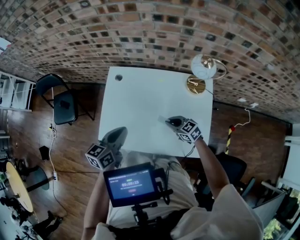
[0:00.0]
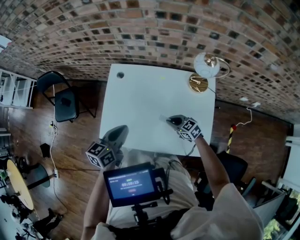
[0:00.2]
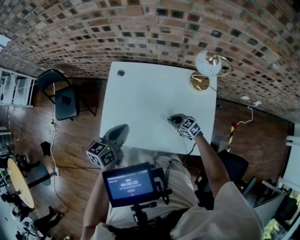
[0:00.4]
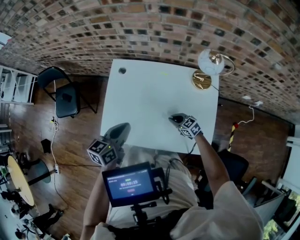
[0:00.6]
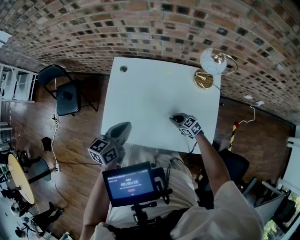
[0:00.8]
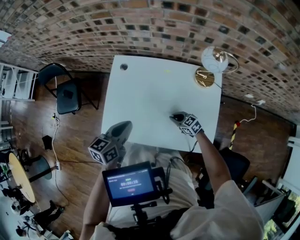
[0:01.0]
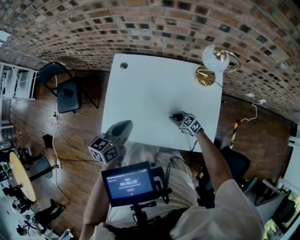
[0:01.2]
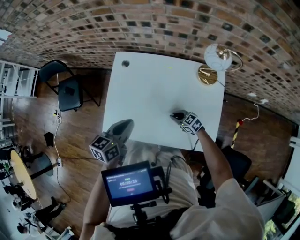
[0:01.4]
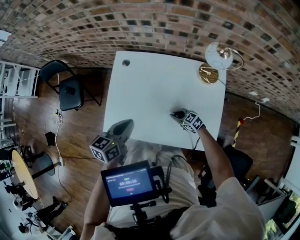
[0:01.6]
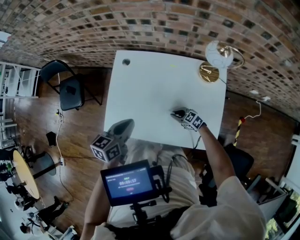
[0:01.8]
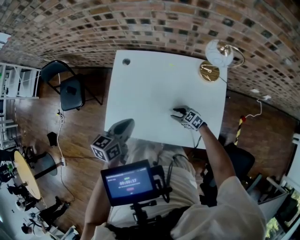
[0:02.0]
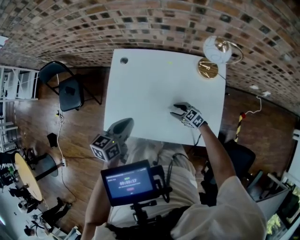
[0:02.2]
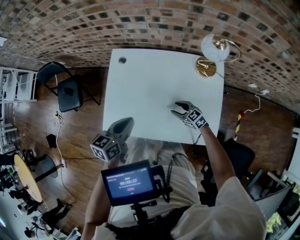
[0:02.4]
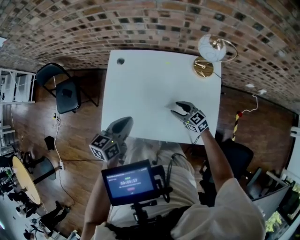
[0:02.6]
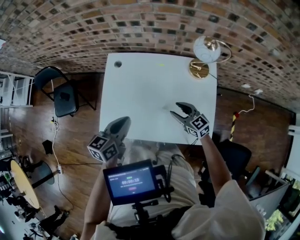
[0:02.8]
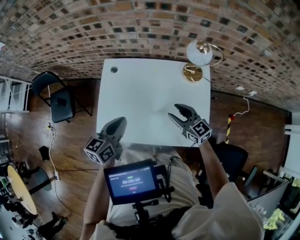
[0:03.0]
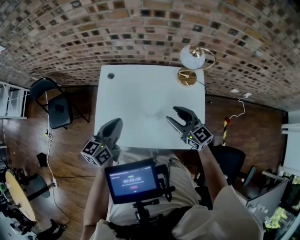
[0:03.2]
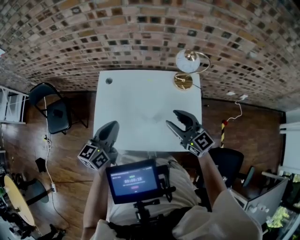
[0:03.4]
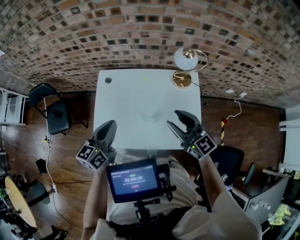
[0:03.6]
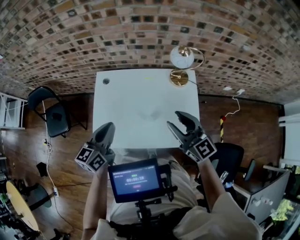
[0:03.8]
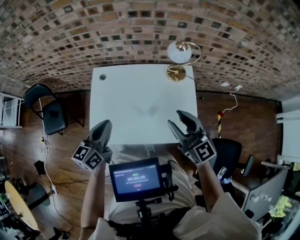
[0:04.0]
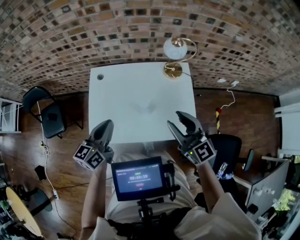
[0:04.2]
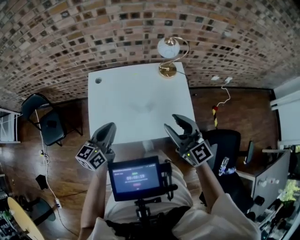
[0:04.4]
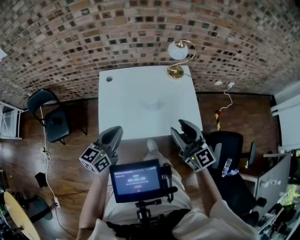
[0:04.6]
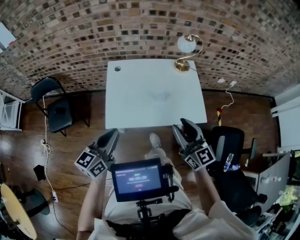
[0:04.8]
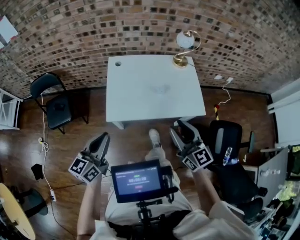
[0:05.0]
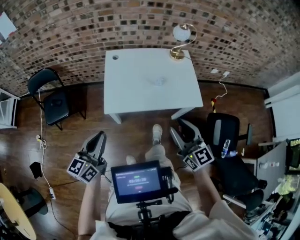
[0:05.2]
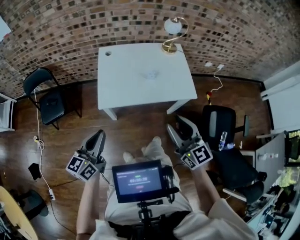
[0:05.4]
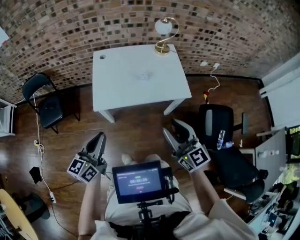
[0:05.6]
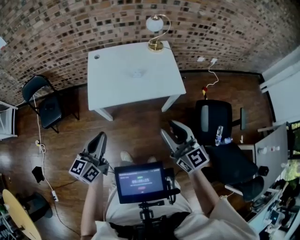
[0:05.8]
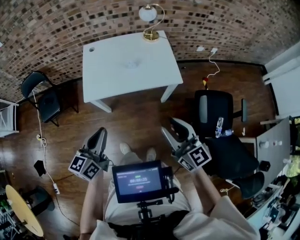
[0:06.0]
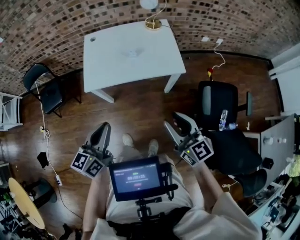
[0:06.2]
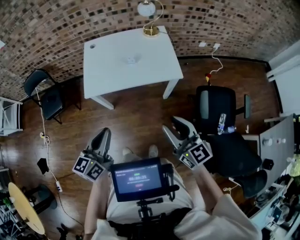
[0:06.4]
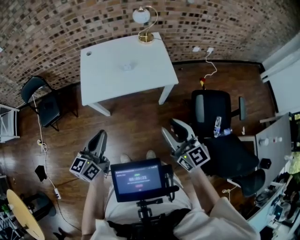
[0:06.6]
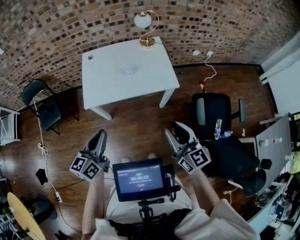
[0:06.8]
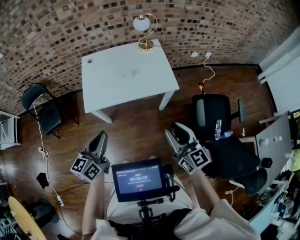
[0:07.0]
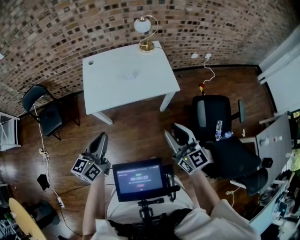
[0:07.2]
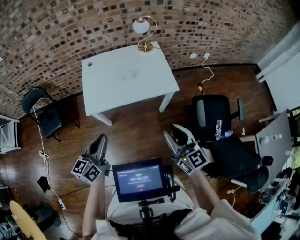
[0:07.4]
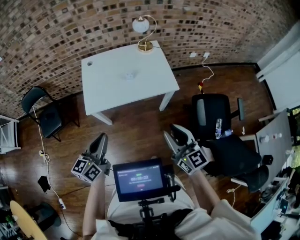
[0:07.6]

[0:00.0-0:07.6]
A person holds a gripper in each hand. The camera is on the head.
0.0 to 1.6 s: The right gripper shifts about 10 cm downward.
1.6 to 3.0 s: The right gripper shifts approximately 25 cm upward, rotates about 30 degrees, and opens up.
3.0 to 4.6 s: The right gripper shifts about 25 cm backward and upward, and swivels approximately 30 degrees. The left gripper travels backward, upward and to the left by some 15 cm.
4.6 to 6.0 s: Both grippers move backward, some 30 cm.
6.0 to 7.6 s: The grippers make only small movements.

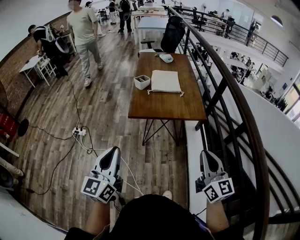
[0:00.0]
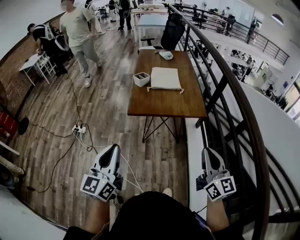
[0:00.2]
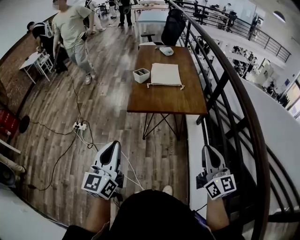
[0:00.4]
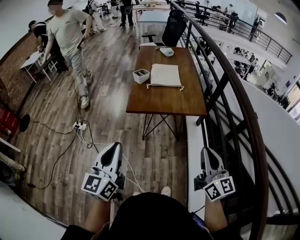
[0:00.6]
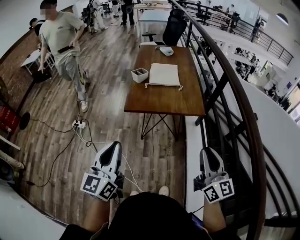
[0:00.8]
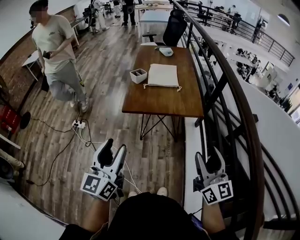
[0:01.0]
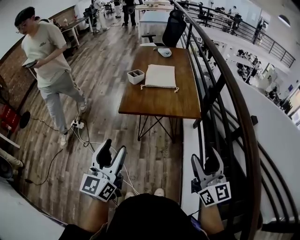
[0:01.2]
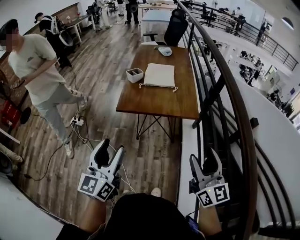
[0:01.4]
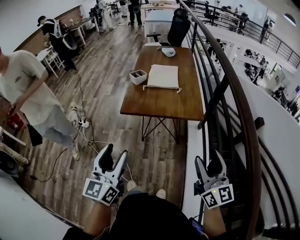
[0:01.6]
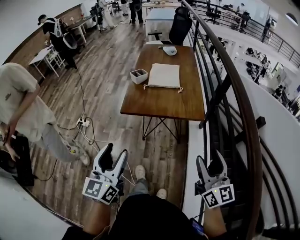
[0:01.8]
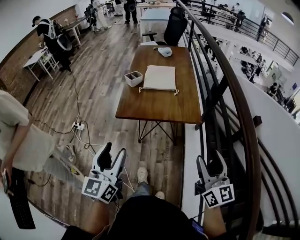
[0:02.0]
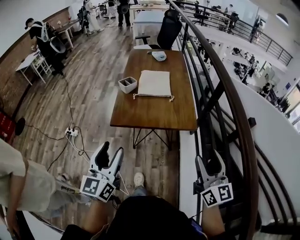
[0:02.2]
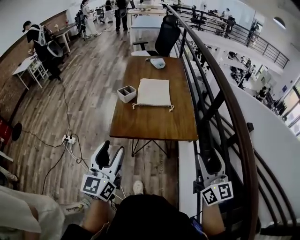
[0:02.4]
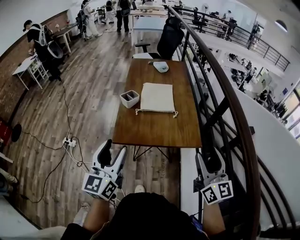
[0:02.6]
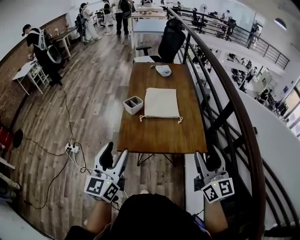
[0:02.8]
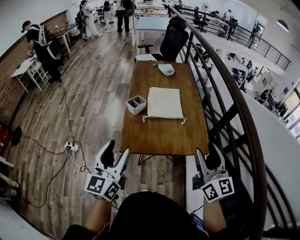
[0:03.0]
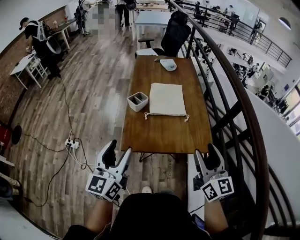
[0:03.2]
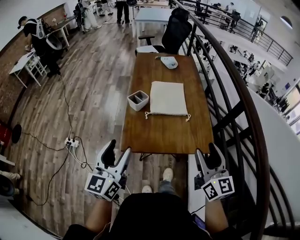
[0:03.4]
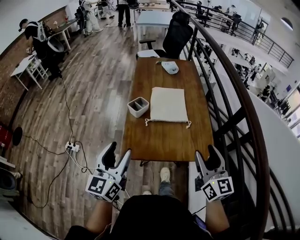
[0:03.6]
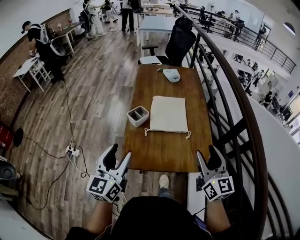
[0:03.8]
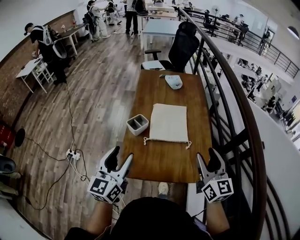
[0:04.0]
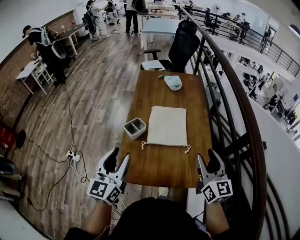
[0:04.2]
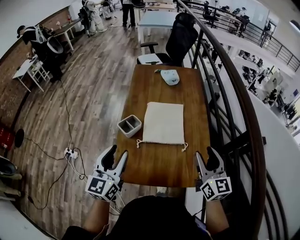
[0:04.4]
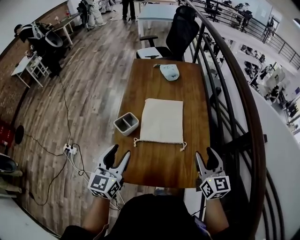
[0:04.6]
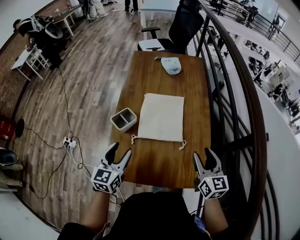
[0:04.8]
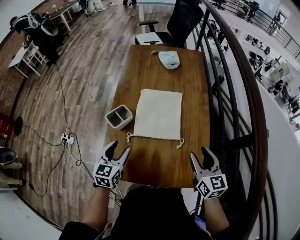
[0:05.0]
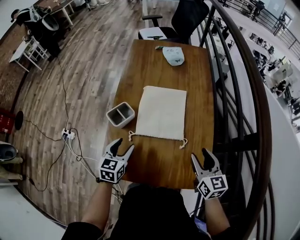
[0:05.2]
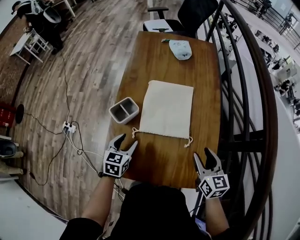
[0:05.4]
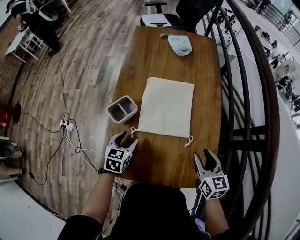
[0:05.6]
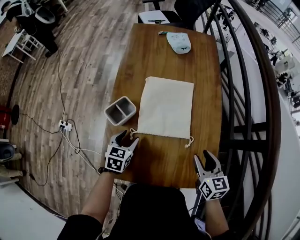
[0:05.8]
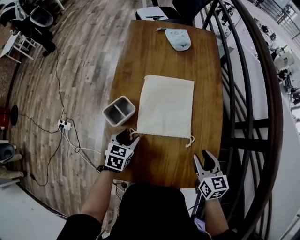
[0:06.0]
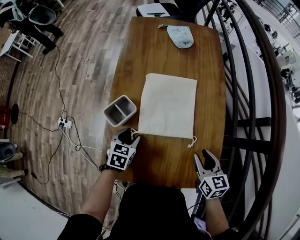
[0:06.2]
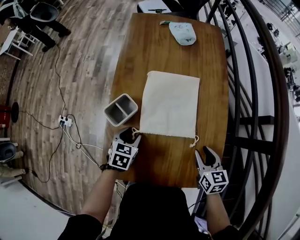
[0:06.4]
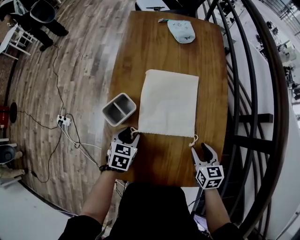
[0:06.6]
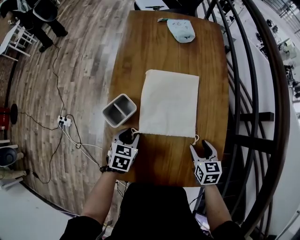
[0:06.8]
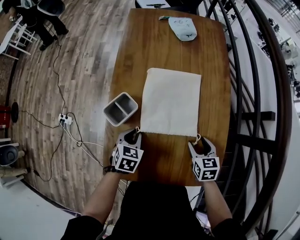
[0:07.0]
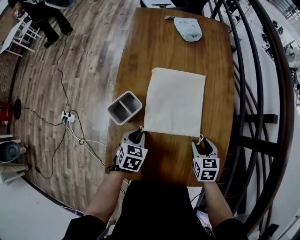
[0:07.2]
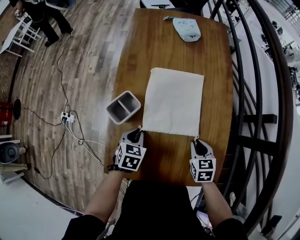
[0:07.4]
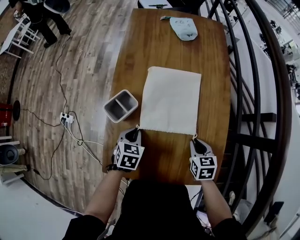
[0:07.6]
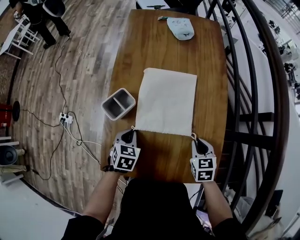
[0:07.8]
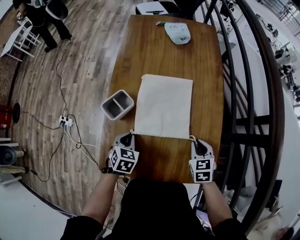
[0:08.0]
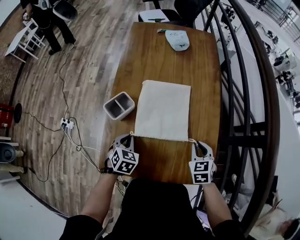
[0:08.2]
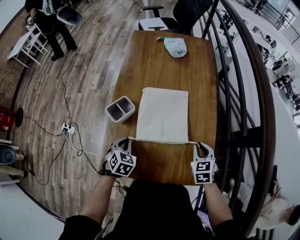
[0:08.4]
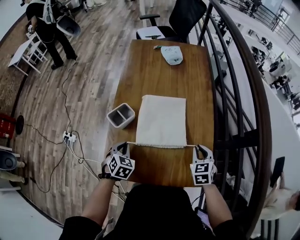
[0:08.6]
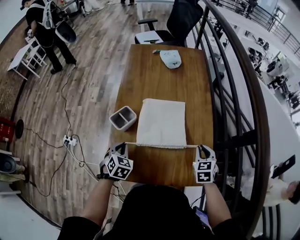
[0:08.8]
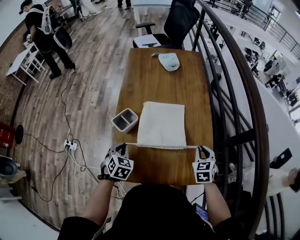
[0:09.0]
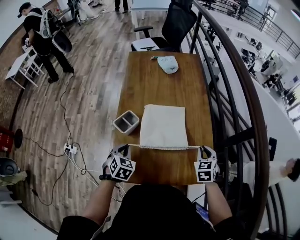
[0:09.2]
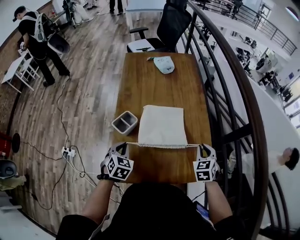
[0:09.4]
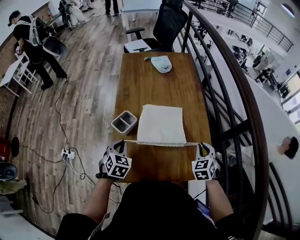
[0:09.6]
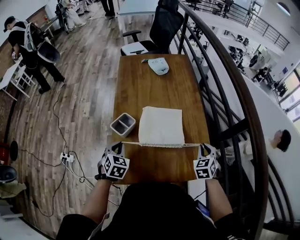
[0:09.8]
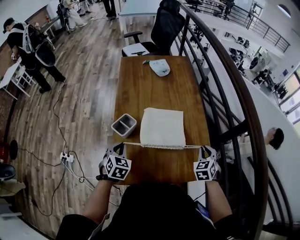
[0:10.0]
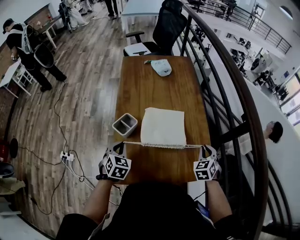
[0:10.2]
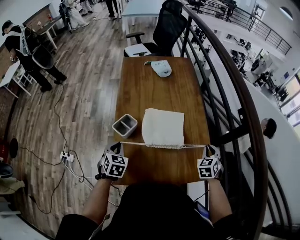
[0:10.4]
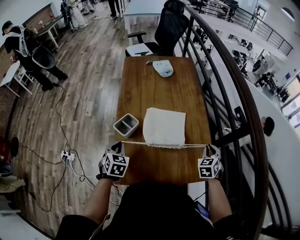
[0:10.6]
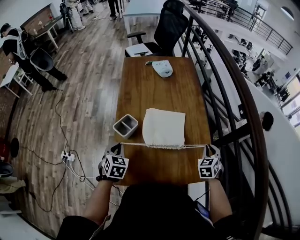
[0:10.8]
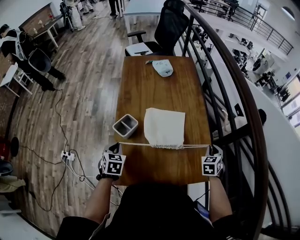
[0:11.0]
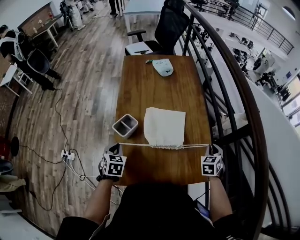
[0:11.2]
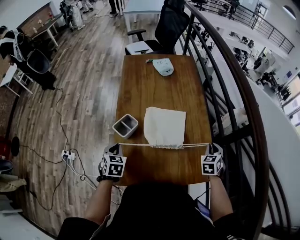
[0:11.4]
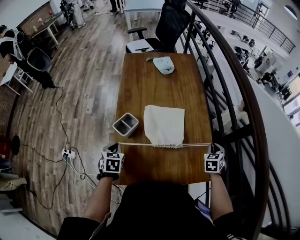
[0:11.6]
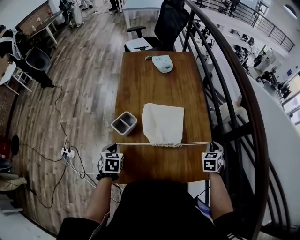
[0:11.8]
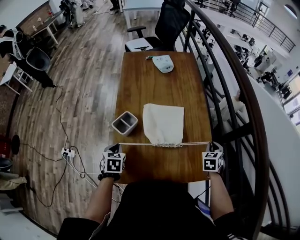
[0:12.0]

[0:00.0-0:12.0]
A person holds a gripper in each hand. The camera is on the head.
0.0 to 1.6 s: The two grippers go some 10 cm to the right. The right gripper opens up; the left gripper opens its fingers.
1.6 to 3.0 s: The two grippers go approximately 25 cm forward.
3.0 to 4.4 s: The two grippers go about 20 cm forward.
4.4 to 6.0 s: The two grippers go some 25 cm downward. The left gripper points its fingers approximately 40 degrees further downward. The right gripper changes its angle by about 30 degrees.
6.0 to 7.6 s: The left gripper closes, while the right gripper shifts some 10 cm downward, and closes up.
7.6 to 9.0 s: The left gripper moves upward and to the left, some 10 cm. The right gripper shifts approximately 10 cm upward and to the right, and changes its angle by roughly 20 degrees.
9.0 to 10.4 s: The right gripper shifts by about 5 cm.
10.4 to 12.0 s: The grippers move only a little.

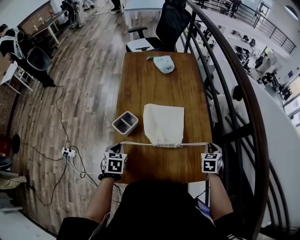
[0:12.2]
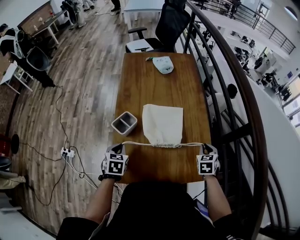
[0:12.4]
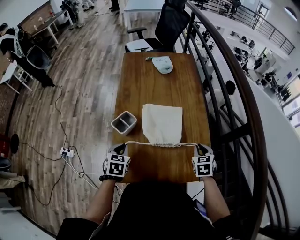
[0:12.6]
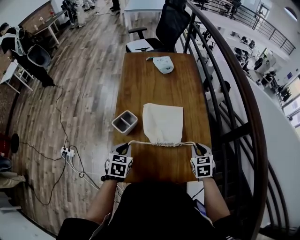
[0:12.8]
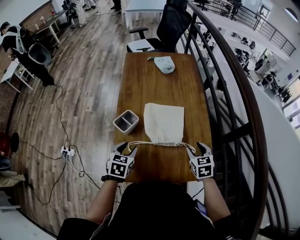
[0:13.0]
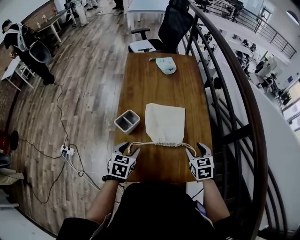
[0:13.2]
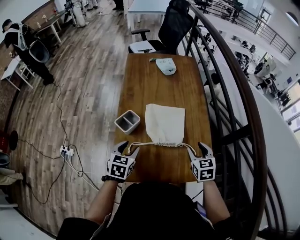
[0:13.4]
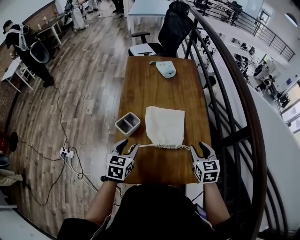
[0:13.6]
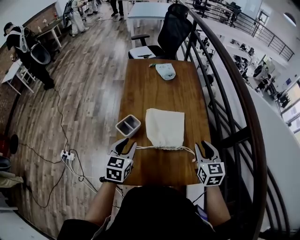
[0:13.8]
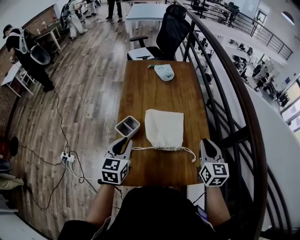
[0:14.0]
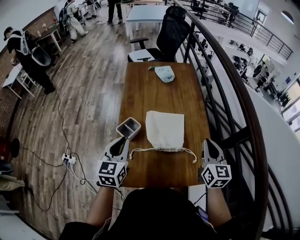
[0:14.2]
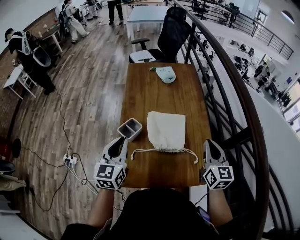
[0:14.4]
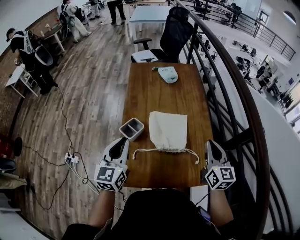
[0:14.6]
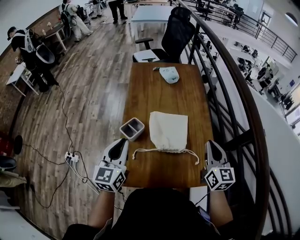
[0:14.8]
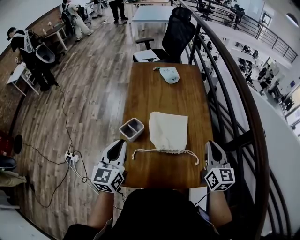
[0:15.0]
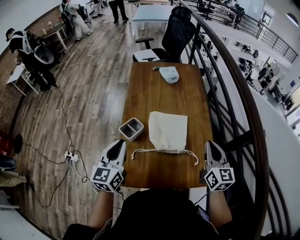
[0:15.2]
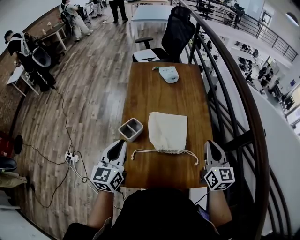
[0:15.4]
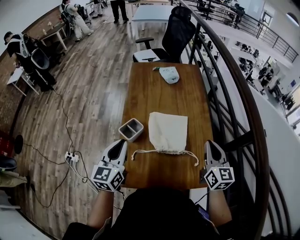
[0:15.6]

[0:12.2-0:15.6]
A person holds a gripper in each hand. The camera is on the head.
12.2 to 13.8 s: The left gripper shifts approximately 10 cm upward and to the right, changes its angle by approximately 20 degrees, and opens its fingers. The right gripper moves upward and to the left, roughly 15 cm, swivels roughly 30 degrees, and opens and closes again.
13.8 to 15.6 s: The right gripper goes some 5 cm upward, and closes up; the left gripper heads upward, covering approximately 10 cm, rotates some 20 degrees, and closes.

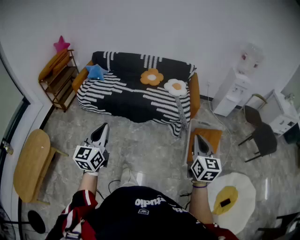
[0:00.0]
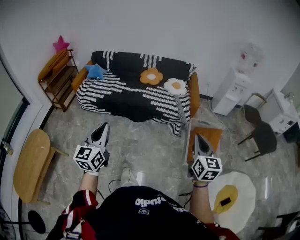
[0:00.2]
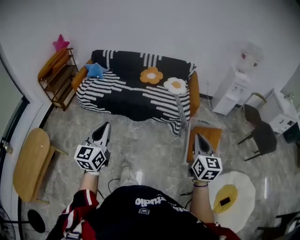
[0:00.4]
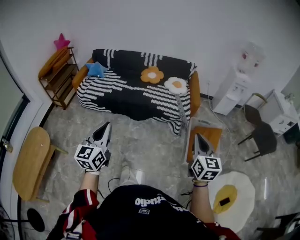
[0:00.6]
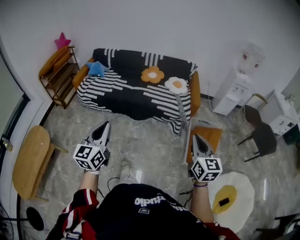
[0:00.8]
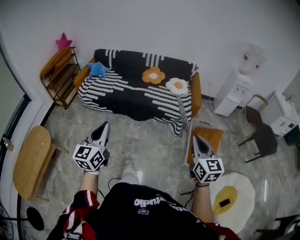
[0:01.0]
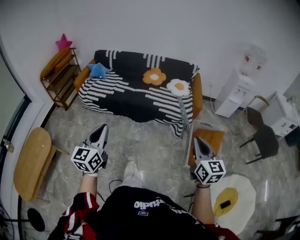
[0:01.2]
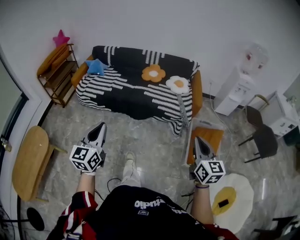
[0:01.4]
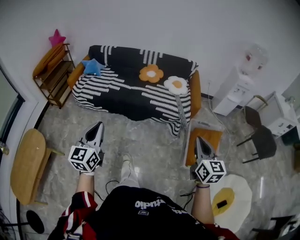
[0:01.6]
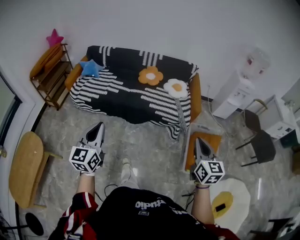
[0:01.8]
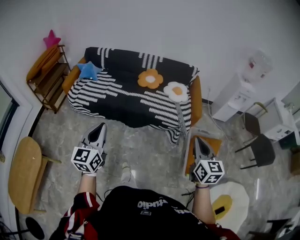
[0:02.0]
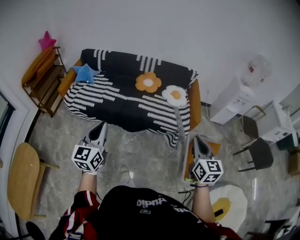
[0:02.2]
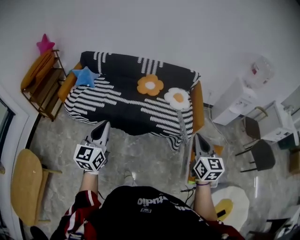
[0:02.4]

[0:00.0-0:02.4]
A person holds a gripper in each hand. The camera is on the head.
0.0 to 1.2 s: The grippers make only small movements.
1.2 to 2.4 s: Both grippers travel together forward, some 30 cm.
